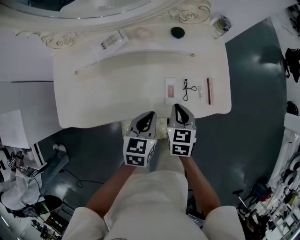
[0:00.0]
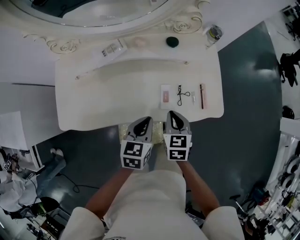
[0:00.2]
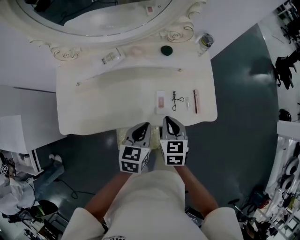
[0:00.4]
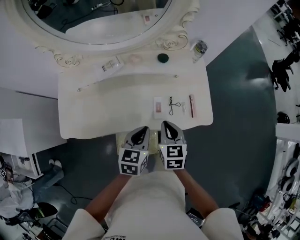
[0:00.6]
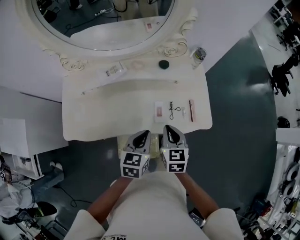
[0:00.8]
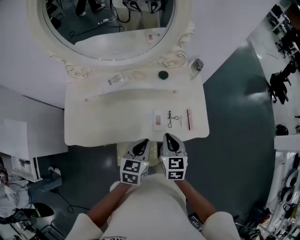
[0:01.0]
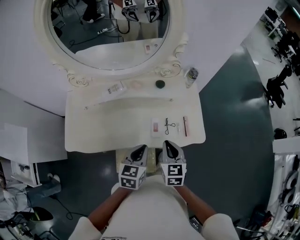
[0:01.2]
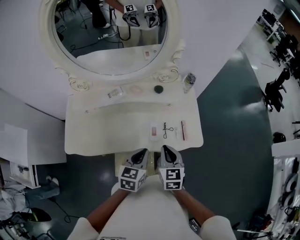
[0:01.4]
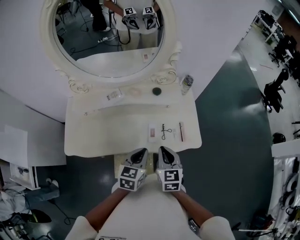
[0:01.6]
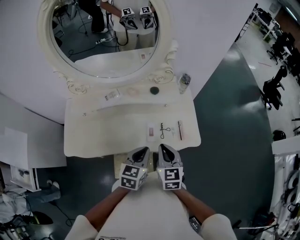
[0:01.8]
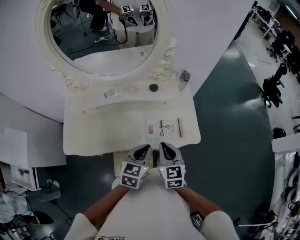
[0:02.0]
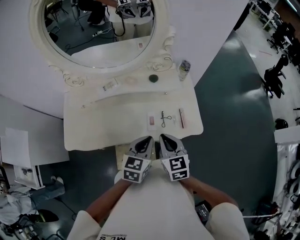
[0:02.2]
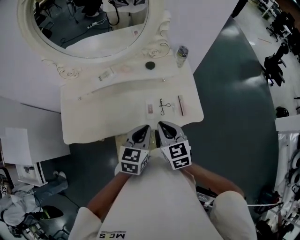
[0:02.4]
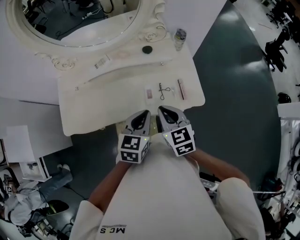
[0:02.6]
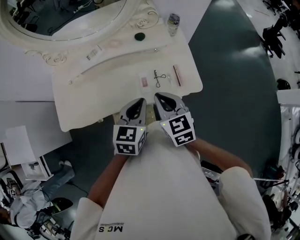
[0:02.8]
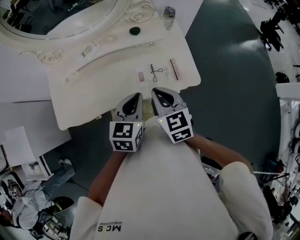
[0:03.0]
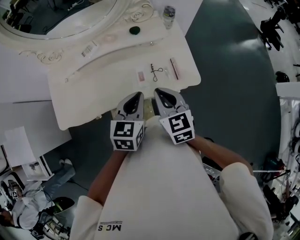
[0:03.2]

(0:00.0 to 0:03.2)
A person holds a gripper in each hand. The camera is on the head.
0:00.0 - 0:01.6: The two grippers go roughly 15 cm upward.
0:01.6 - 0:03.2: The grippers make only small movements.

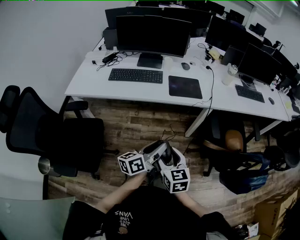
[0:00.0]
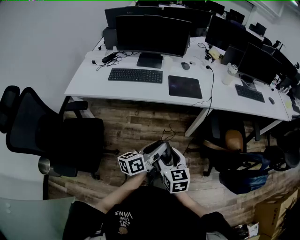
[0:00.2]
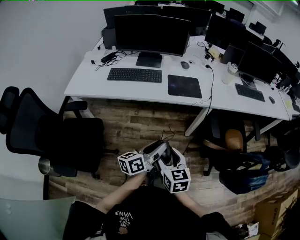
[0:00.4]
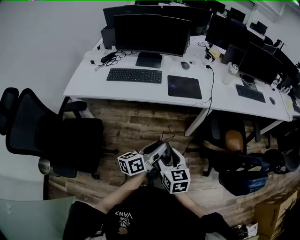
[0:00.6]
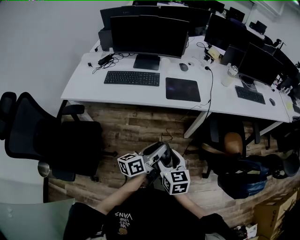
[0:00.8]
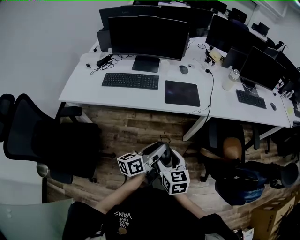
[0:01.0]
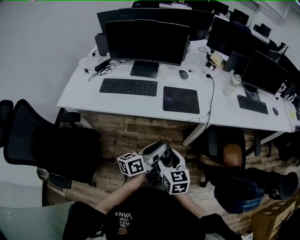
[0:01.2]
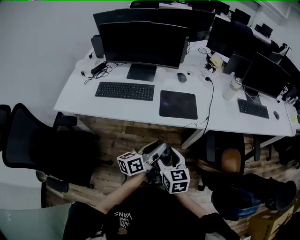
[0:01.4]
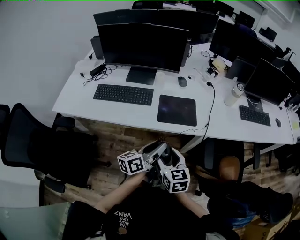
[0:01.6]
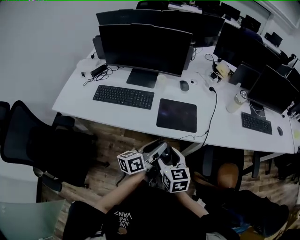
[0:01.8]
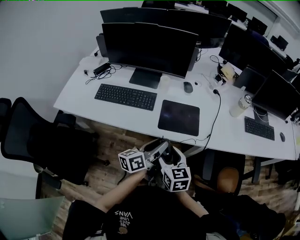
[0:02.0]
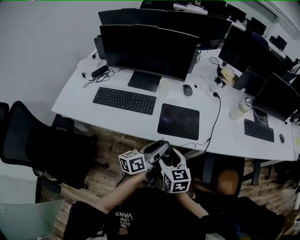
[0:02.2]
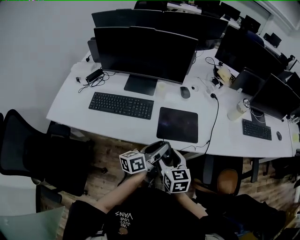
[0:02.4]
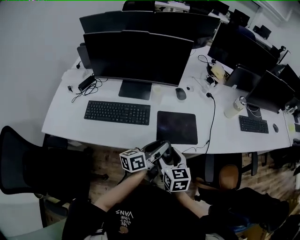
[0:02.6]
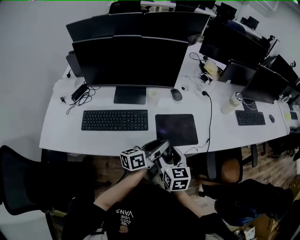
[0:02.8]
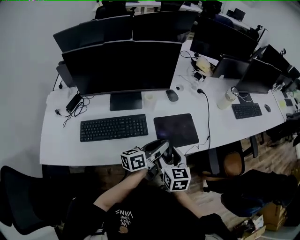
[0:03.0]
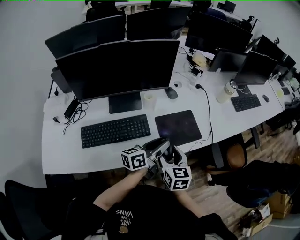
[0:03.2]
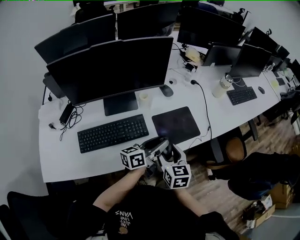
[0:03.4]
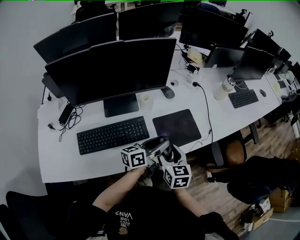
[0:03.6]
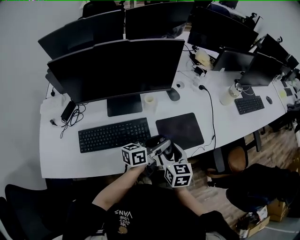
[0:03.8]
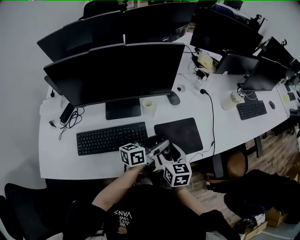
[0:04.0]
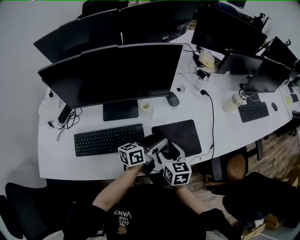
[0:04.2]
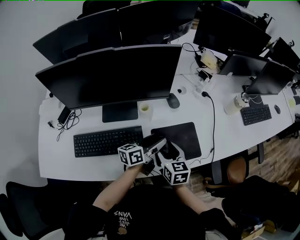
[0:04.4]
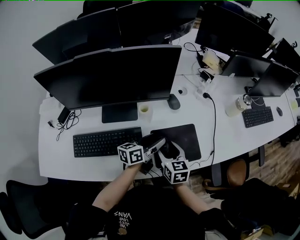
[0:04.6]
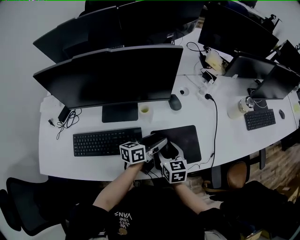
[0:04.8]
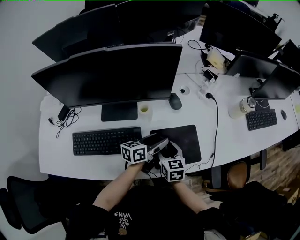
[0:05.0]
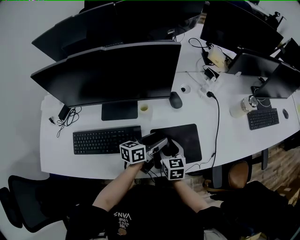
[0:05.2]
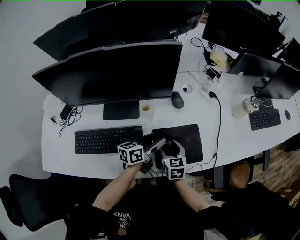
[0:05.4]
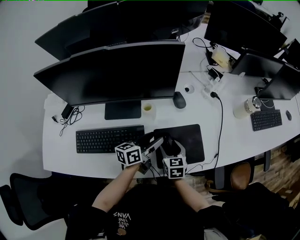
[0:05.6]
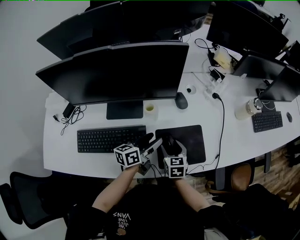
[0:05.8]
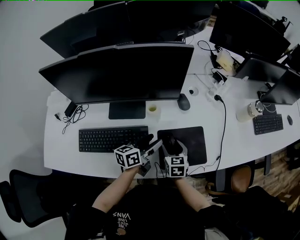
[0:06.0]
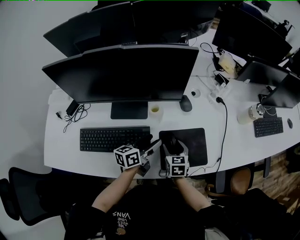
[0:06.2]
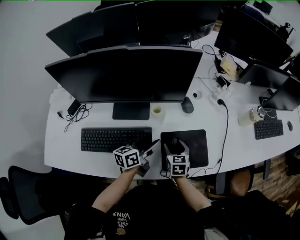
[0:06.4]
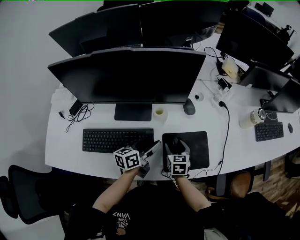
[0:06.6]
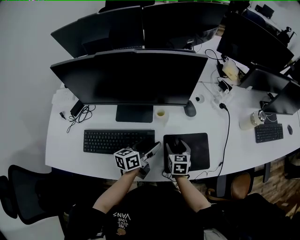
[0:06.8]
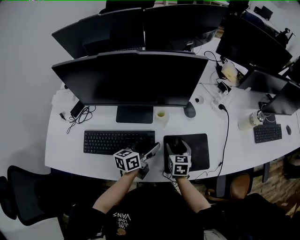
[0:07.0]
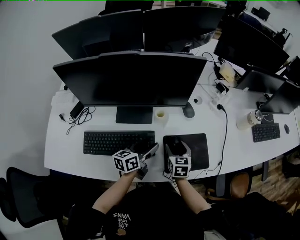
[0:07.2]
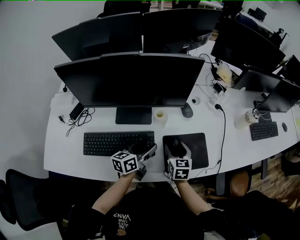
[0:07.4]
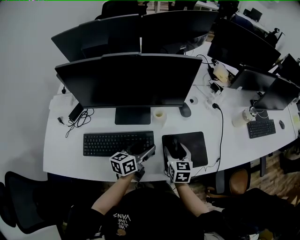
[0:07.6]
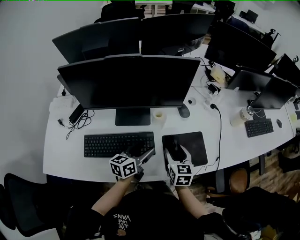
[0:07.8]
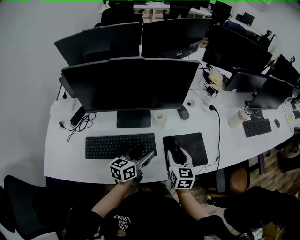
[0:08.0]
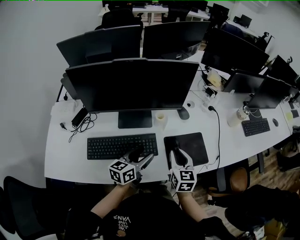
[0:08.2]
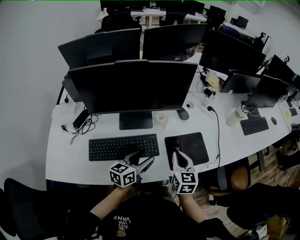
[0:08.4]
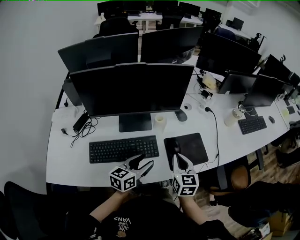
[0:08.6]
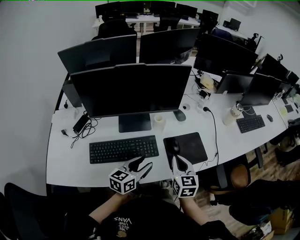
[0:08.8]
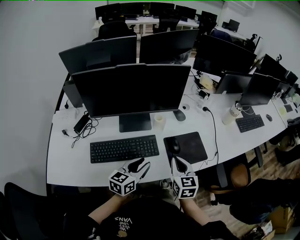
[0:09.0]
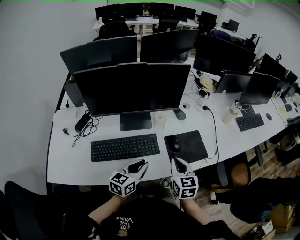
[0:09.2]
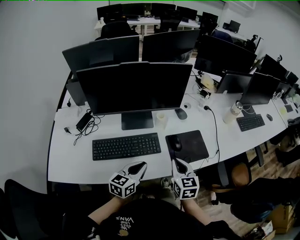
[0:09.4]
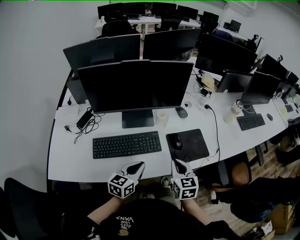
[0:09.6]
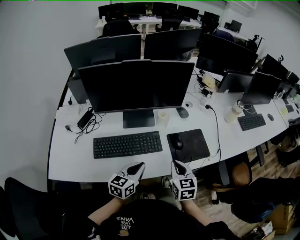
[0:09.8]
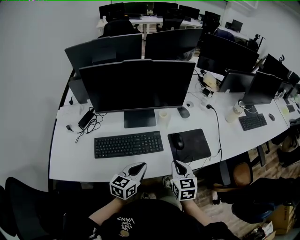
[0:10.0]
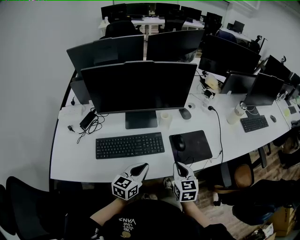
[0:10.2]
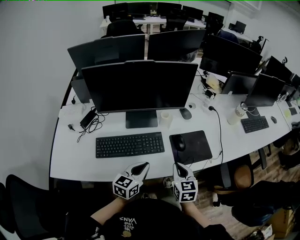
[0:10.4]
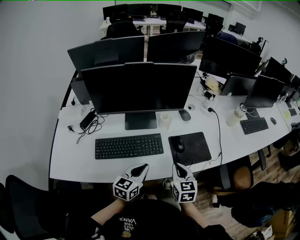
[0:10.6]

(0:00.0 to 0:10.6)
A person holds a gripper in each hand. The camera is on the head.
0:00.0 - 0:01.6: The two grippers go some 20 cm forward.
0:01.6 - 0:03.0: Both grippers move forward, roughly 15 cm. The right gripper changes its angle by roughly 20 degrees.
0:03.0 - 0:04.6: Both grippers travel together forward and downward, approximately 15 cm. The left gripper opens up.
0:04.6 - 0:06.0: The right gripper heads downward, covering some 5 cm.
0:06.0 - 0:07.6: The left gripper shifts some 5 cm to the left. The right gripper moves upward, roughly 5 cm.
0:07.6 - 0:09.0: The right gripper shifts approximately 15 cm backward and upward, and closes; the left gripper is displaced backward by roughly 10 cm, and closes up.
0:09.0 - 0:10.6: The left gripper closes.

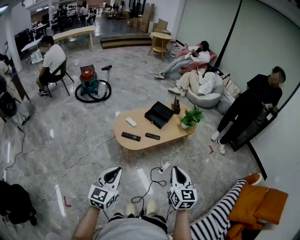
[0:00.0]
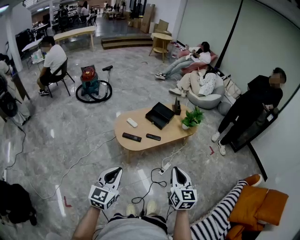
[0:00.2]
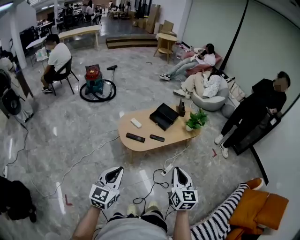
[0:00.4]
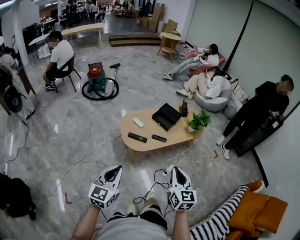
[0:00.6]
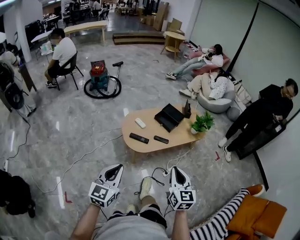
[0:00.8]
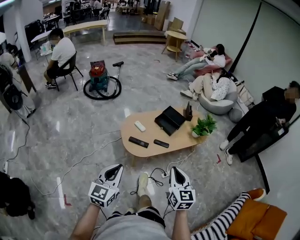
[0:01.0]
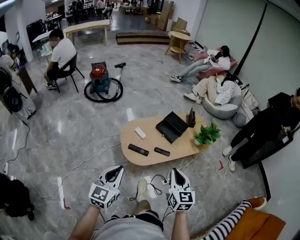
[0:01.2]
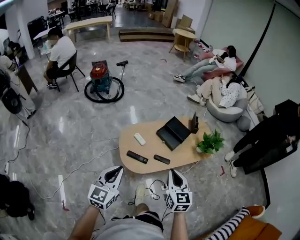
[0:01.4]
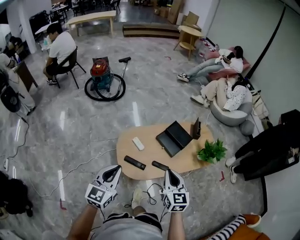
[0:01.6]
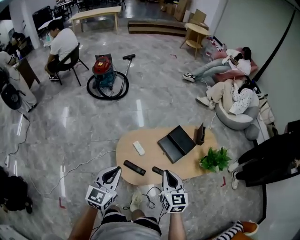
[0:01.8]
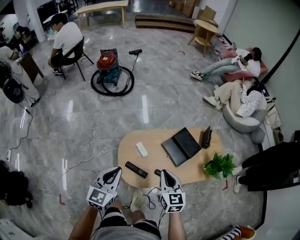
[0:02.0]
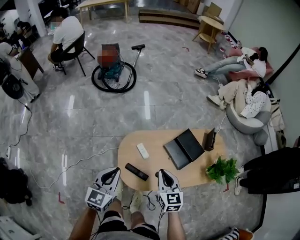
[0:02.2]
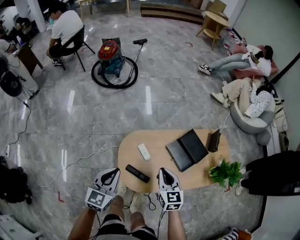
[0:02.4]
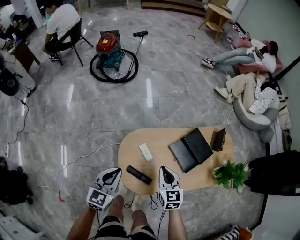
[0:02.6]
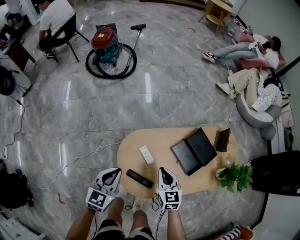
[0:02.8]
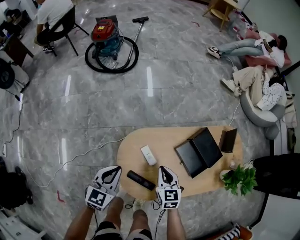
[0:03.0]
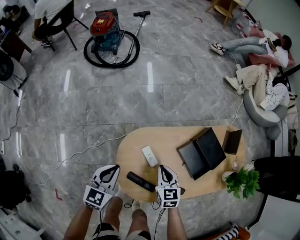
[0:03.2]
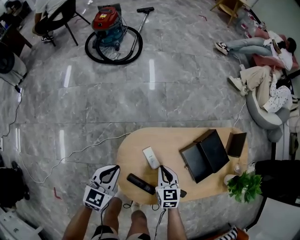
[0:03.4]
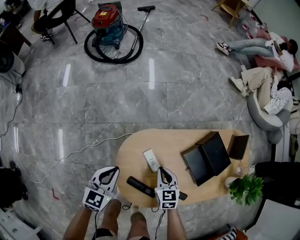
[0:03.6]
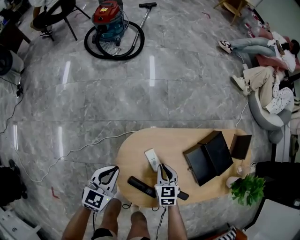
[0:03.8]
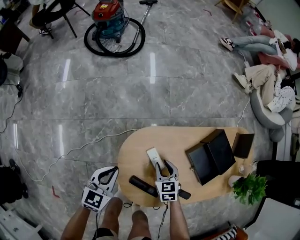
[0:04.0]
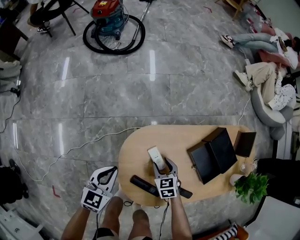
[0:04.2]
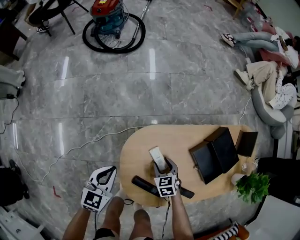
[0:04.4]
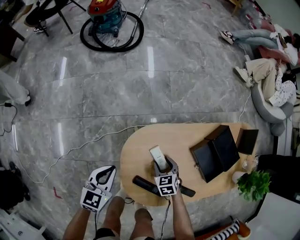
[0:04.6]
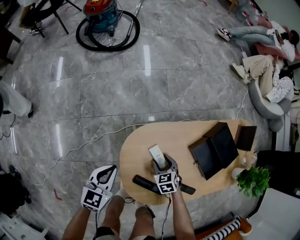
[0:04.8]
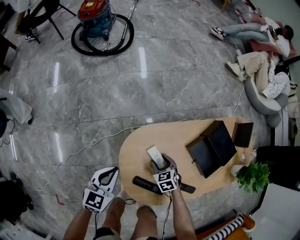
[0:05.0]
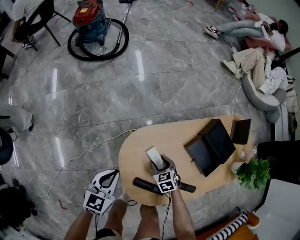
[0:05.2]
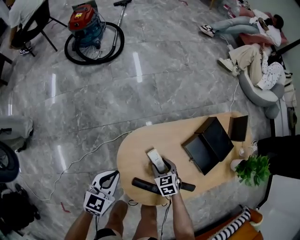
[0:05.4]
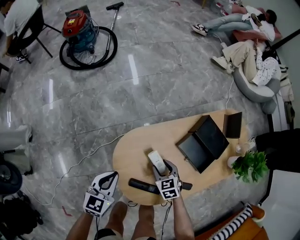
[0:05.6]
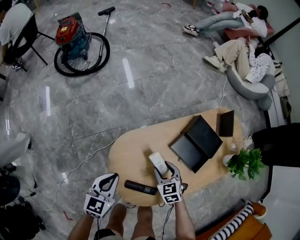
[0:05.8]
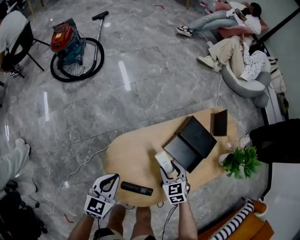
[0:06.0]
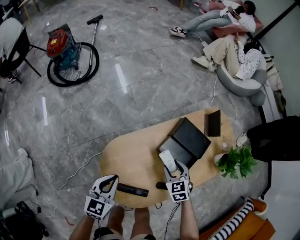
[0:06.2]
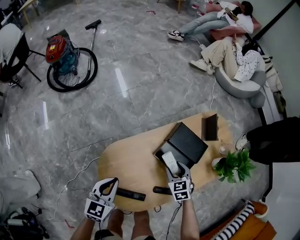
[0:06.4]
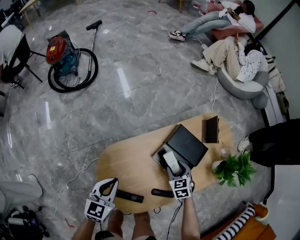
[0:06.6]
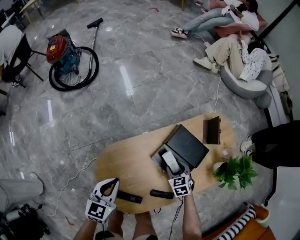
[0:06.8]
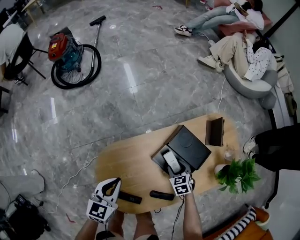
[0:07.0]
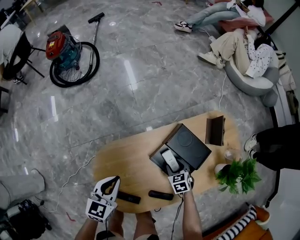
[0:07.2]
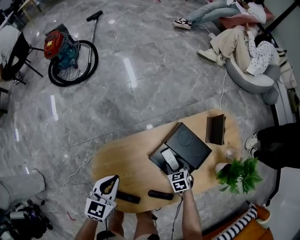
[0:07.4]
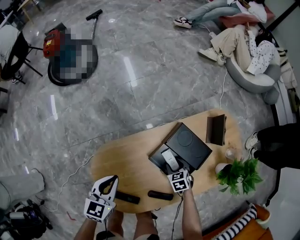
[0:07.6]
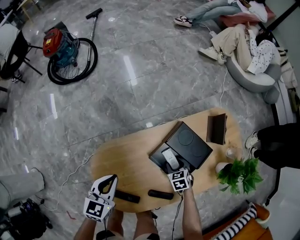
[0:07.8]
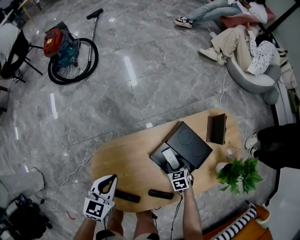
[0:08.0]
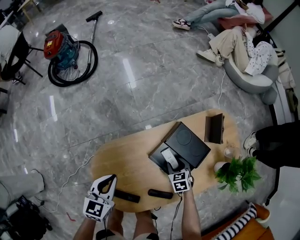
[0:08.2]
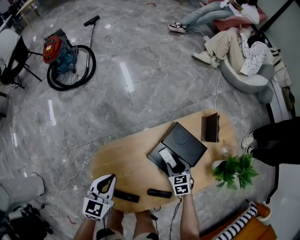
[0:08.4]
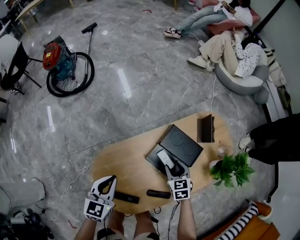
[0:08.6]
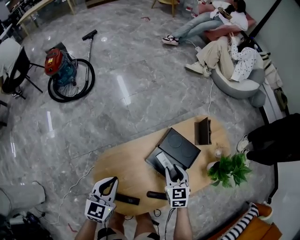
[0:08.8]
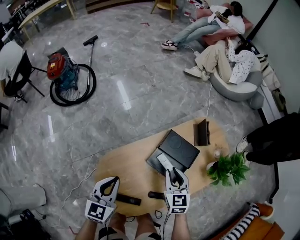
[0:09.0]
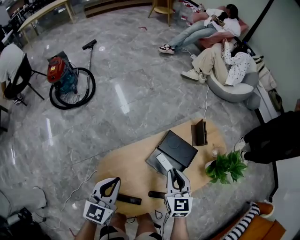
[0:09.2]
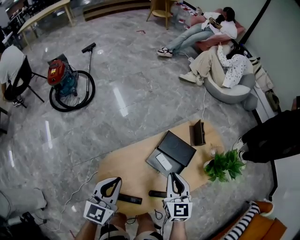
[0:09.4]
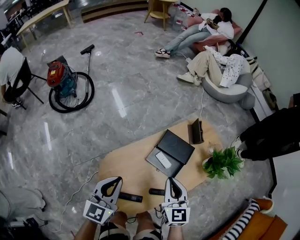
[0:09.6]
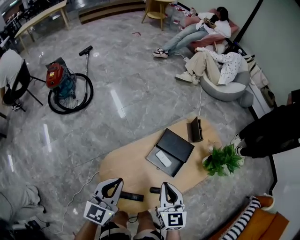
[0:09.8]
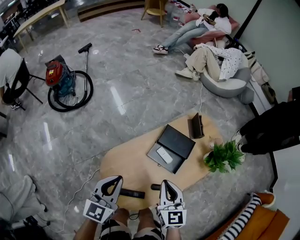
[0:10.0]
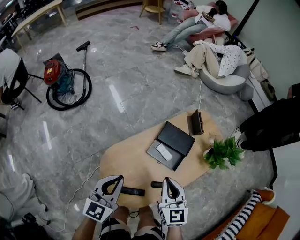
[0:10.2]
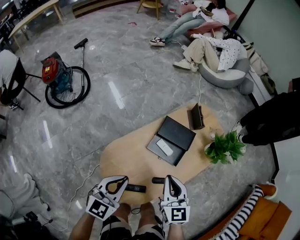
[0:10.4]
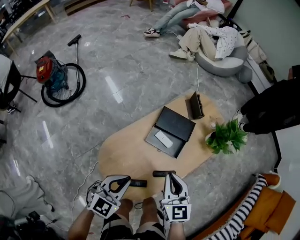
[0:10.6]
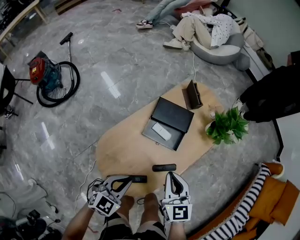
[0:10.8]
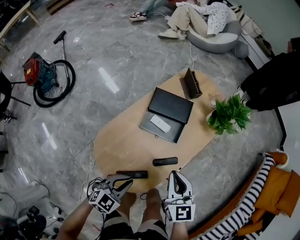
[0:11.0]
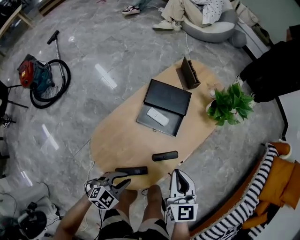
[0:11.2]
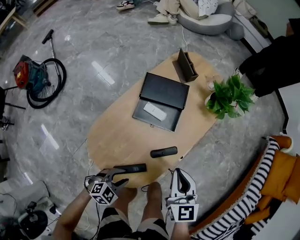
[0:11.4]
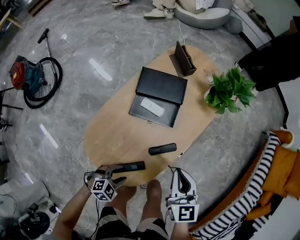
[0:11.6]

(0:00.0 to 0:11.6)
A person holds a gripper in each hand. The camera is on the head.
0:00.0 - 0:01.4: Both grippers travel together forward, some 25 cm.
0:01.4 - 0:02.8: Both grippers move forward and downward, roughly 40 cm. The right gripper changes its angle by approximately 20 degrees.
0:02.8 - 0:04.4: The right gripper shifts approximately 25 cm downward, rotates some 30 degrees, and opens its fingers; the left gripper heads downward and to the left, covering roughly 20 cm.
0:04.4 - 0:05.8: The right gripper travels upward and to the right by some 10 cm; the left gripper goes roughly 10 cm to the right and upward.
0:05.8 - 0:07.2: The right gripper goes roughly 20 cm to the right, forward and downward. The left gripper heads to the right and forward, covering roughly 15 cm.
0:07.2 - 0:08.8: The right gripper moves upward, some 15 cm, and swivels roughly 30 degrees, while the left gripper heads upward, covering roughly 5 cm.
0:08.8 - 0:10.2: The right gripper goes approximately 20 cm upward and backward, changes its angle by roughly 20 degrees, and closes up. Meanwhile the left gripper moves upward, roughly 10 cm.
0:10.2 - 0:11.6: The left gripper moves downward, approximately 30 cm, points its fingers approximately 40 degrees further downward, and opens, while the right gripper moves roughly 20 cm, and rotates some 20 degrees.
